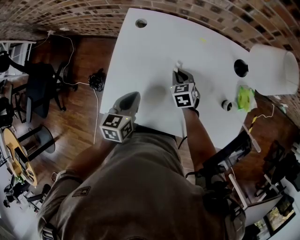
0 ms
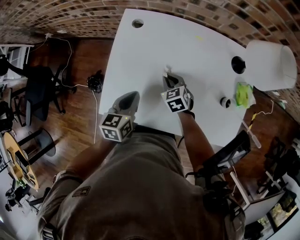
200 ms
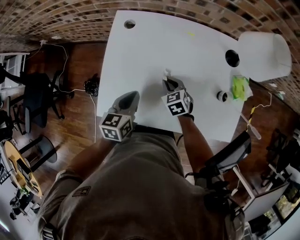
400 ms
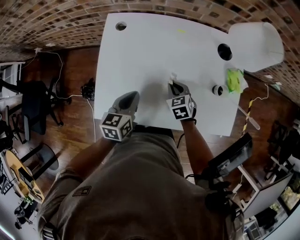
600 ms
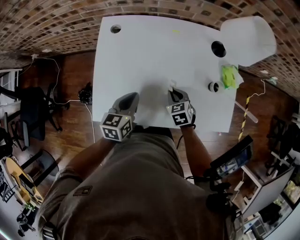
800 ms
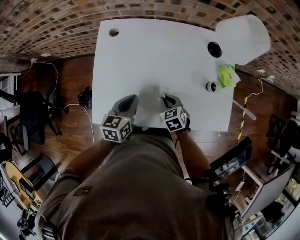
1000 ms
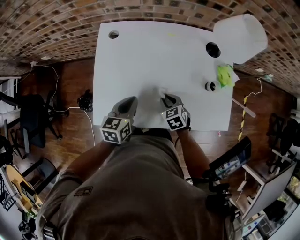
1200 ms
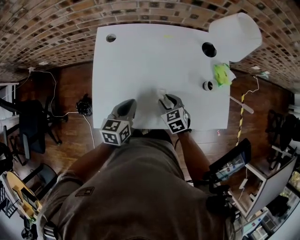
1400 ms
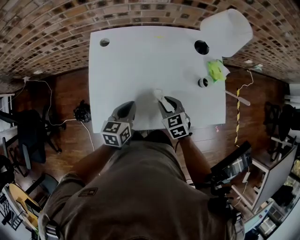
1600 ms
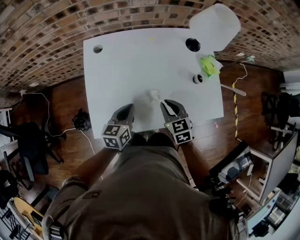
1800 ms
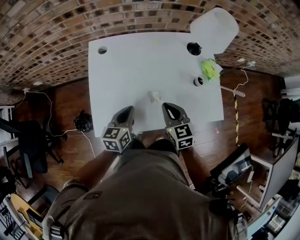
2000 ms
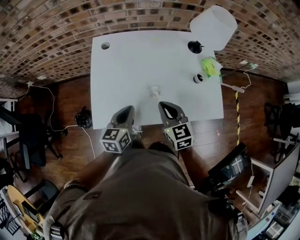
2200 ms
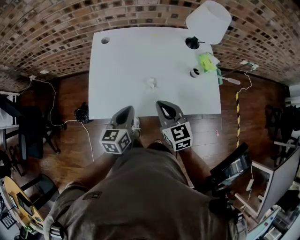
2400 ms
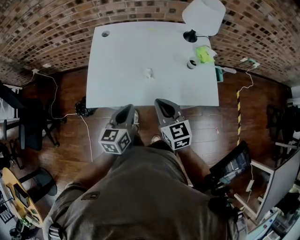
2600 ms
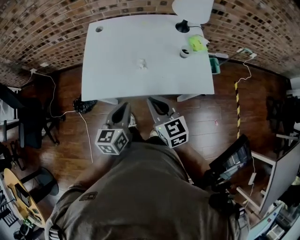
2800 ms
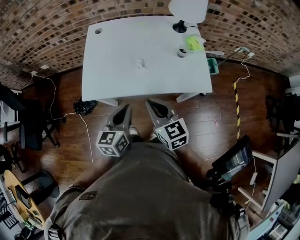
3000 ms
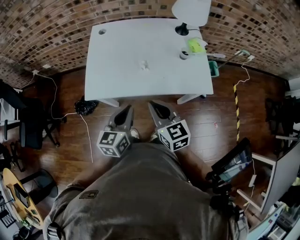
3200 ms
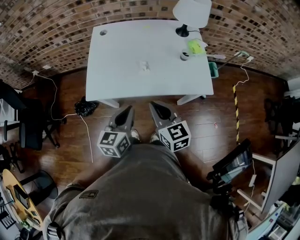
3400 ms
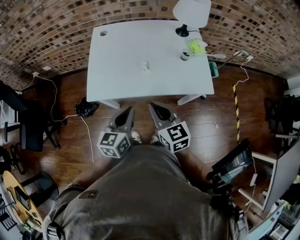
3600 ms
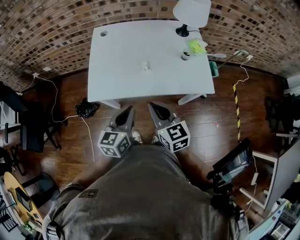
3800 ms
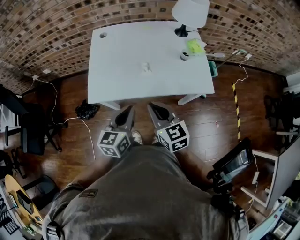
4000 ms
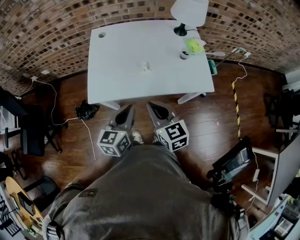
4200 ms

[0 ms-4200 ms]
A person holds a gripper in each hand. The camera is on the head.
0 ms to 1400 ms: The left gripper changes place by roughly 5 cm. The right gripper is displaced backward by some 15 cm, and opens.
1400 ms to 2800 ms: The right gripper heads backward and upward, covering roughly 25 cm, rotates approximately 30 degrees, and closes up. The left gripper is displaced backward by about 20 cm.
2800 ms to 4200 ms: The right gripper shifts by approximately 5 cm.

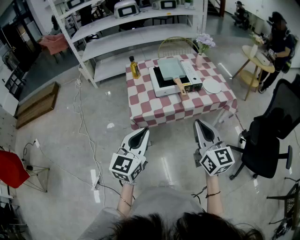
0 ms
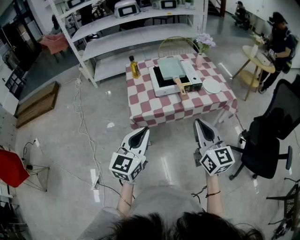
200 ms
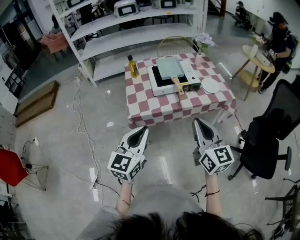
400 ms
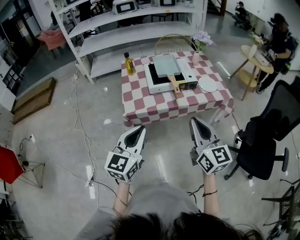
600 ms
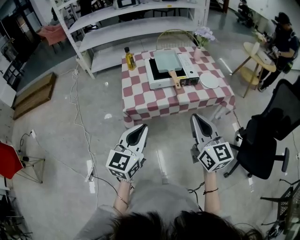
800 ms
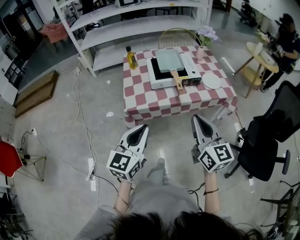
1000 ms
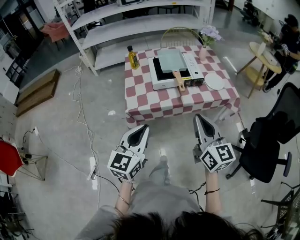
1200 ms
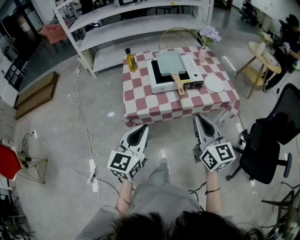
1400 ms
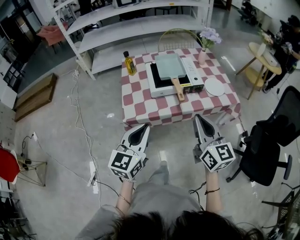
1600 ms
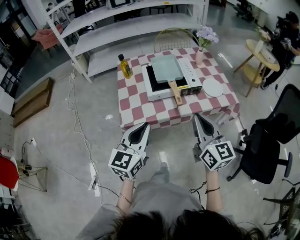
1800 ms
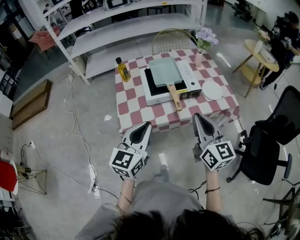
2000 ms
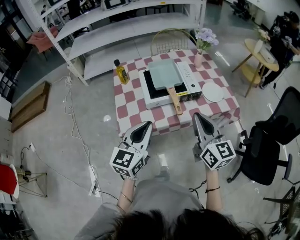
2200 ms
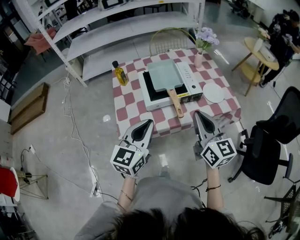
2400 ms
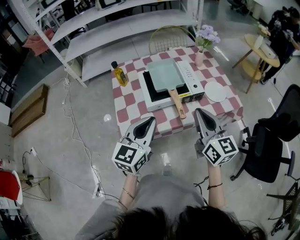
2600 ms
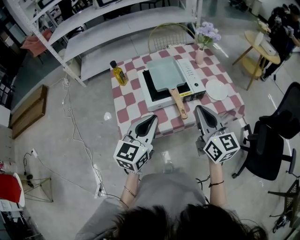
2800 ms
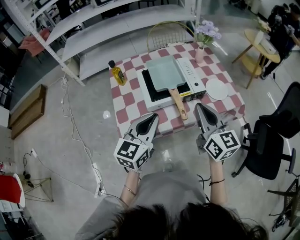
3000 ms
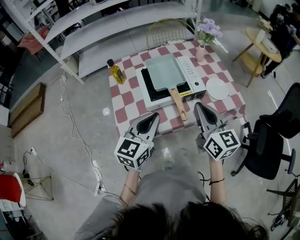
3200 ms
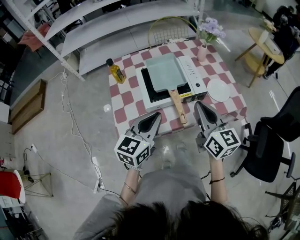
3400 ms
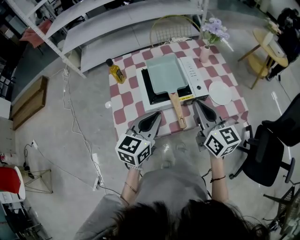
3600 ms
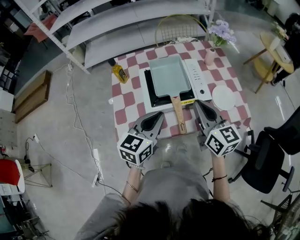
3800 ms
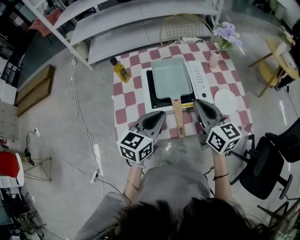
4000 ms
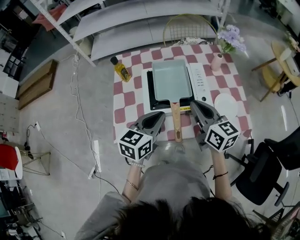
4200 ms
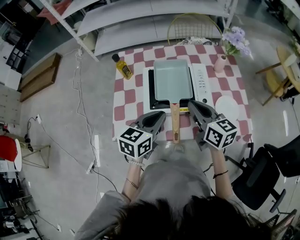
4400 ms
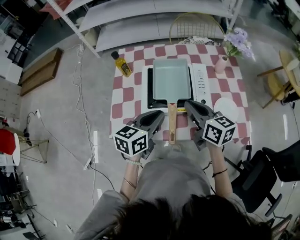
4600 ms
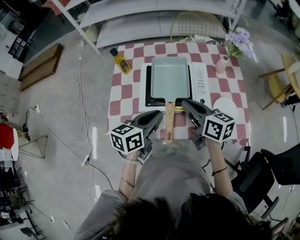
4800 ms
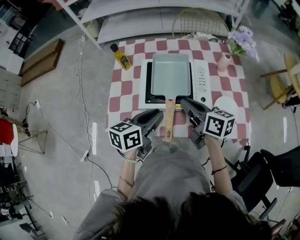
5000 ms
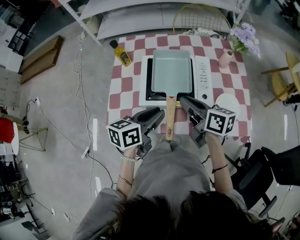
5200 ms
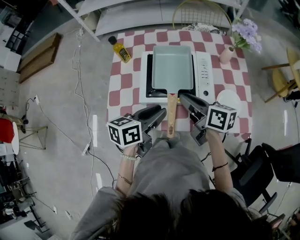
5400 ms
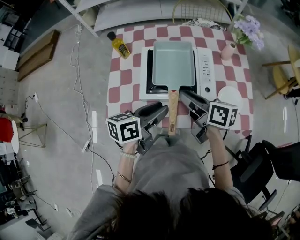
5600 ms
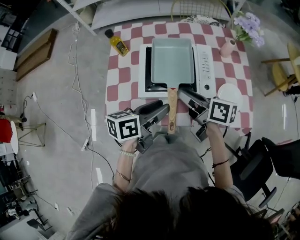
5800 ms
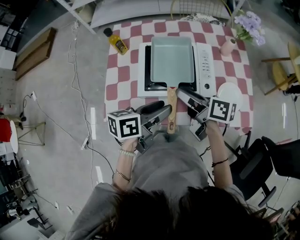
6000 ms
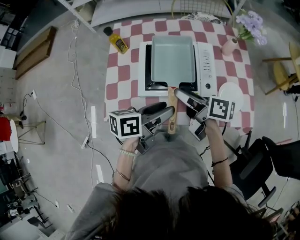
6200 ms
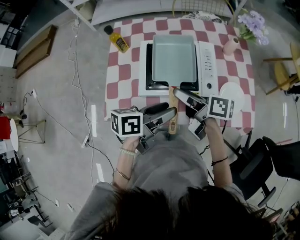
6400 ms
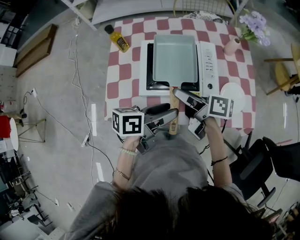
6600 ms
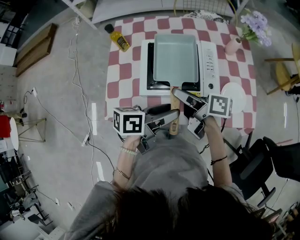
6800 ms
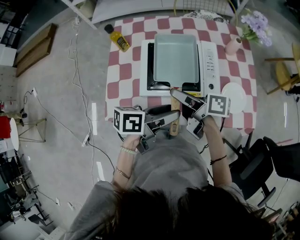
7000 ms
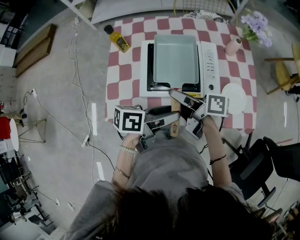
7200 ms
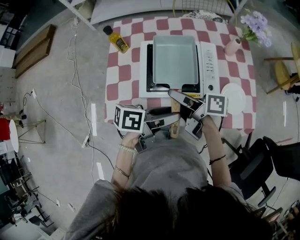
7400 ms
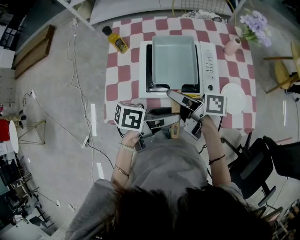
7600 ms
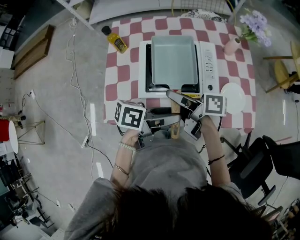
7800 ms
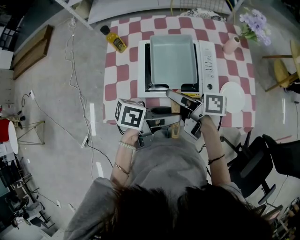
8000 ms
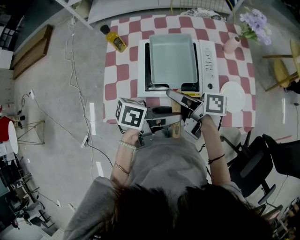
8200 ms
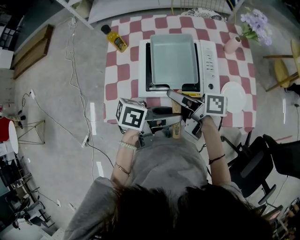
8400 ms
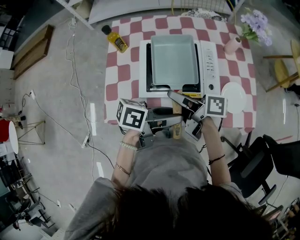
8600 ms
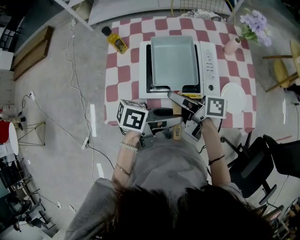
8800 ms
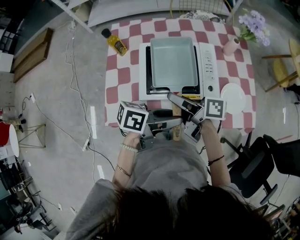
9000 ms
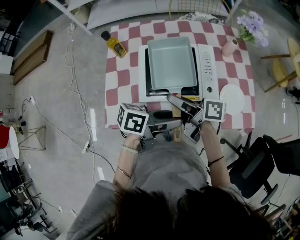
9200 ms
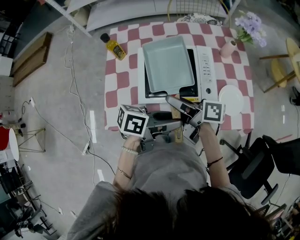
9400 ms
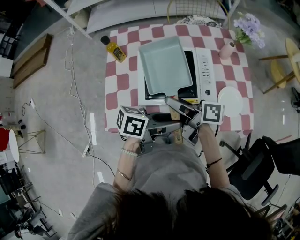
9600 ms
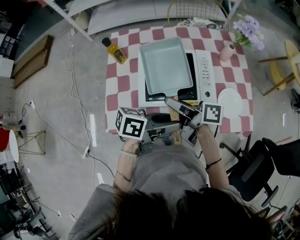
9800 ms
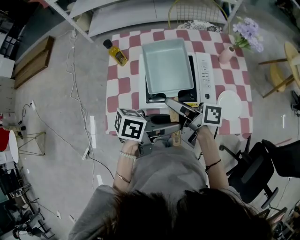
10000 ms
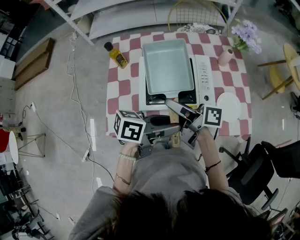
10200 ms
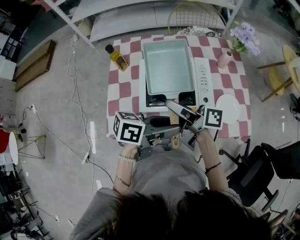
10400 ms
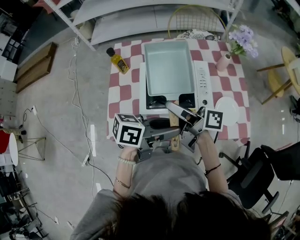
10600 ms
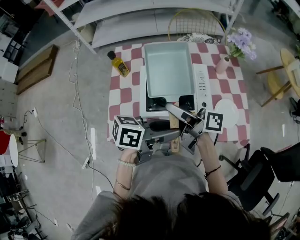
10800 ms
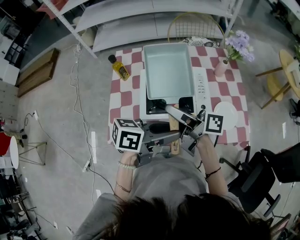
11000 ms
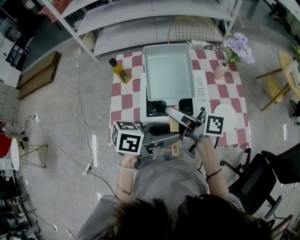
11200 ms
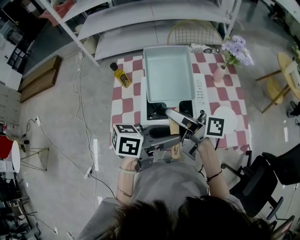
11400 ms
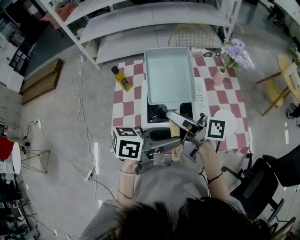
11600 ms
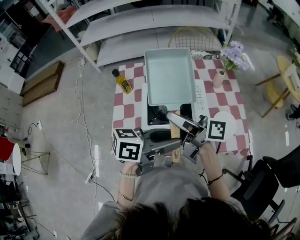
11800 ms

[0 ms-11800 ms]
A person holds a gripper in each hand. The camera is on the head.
0 ms to 1400 ms: The right gripper heads forward, covering approximately 5 cm; the left gripper ends up some 5 cm from where it was.
1400 ms to 3000 ms: Both grippers move forward, approximately 20 cm.
3000 ms to 4400 ms: Both grippers travel together forward and downward, roughly 15 cm. The right gripper swivels roughly 30 degrees. The left gripper rotates about 20 degrees.
4400 ms to 6000 ms: The left gripper turns by some 30 degrees, and opens its fingers, while the right gripper goes some 5 cm downward, changes its angle by roughly 40 degrees, and opens up.
6000 ms to 7400 ms: The grippers stay close to where they were, moving slightly.
7400 ms to 8800 ms: There are only small adjustments of the grippers.
8800 ms to 10400 ms: The right gripper heads upward, covering about 5 cm.
10400 ms to 11800 ms: The grippers both shift upward by roughly 5 cm.

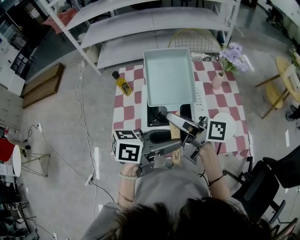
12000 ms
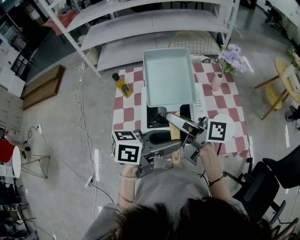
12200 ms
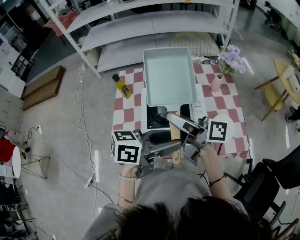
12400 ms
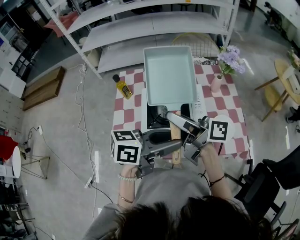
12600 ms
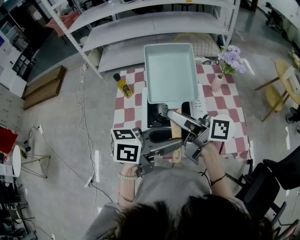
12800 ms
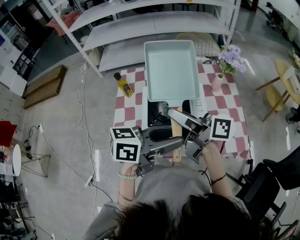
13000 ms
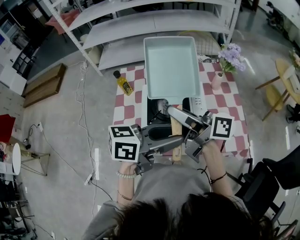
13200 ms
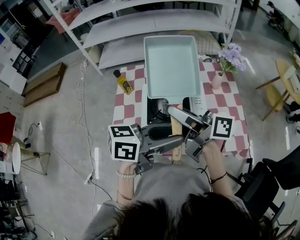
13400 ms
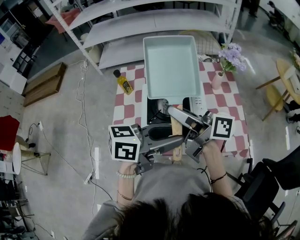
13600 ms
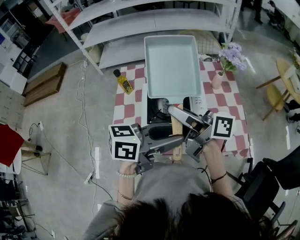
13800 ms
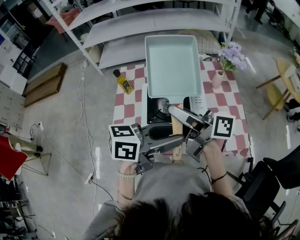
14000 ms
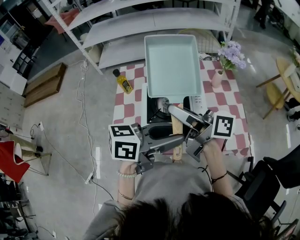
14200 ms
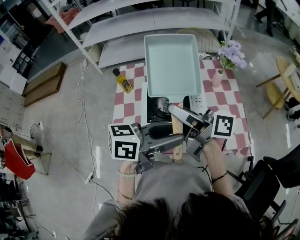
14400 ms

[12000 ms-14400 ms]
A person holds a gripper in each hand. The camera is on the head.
12000 ms to 13200 ms: The grippers move only a little.
13200 ms to 14400 ms: Both grippers stay put.

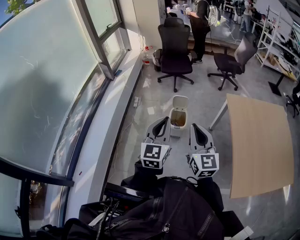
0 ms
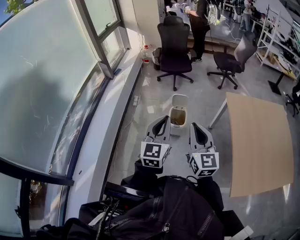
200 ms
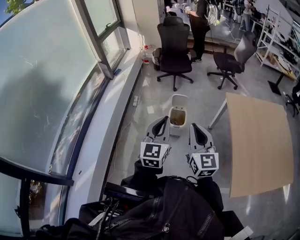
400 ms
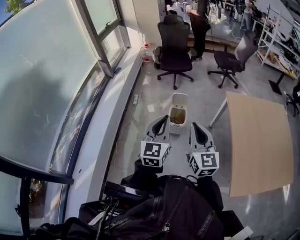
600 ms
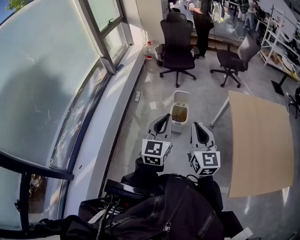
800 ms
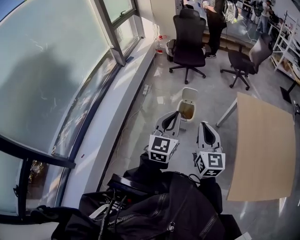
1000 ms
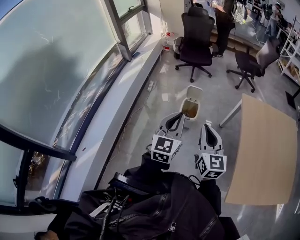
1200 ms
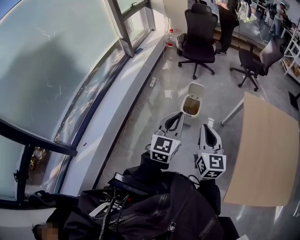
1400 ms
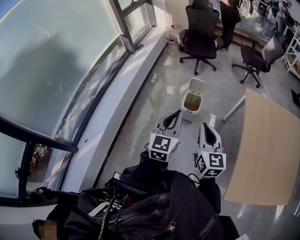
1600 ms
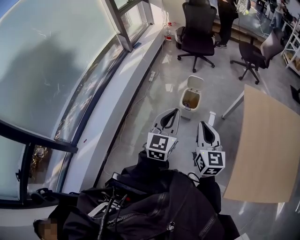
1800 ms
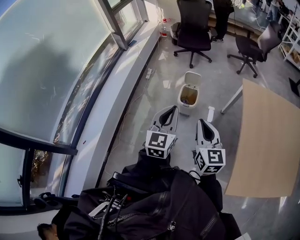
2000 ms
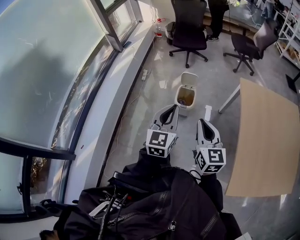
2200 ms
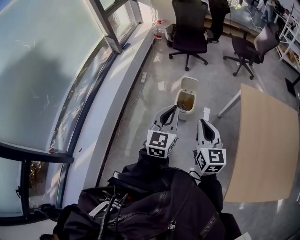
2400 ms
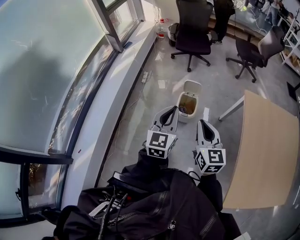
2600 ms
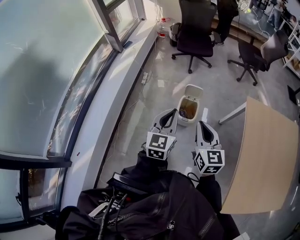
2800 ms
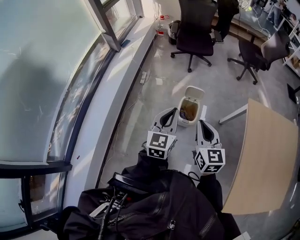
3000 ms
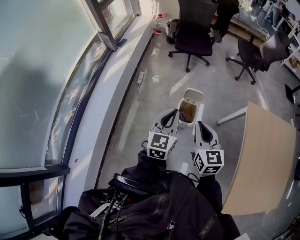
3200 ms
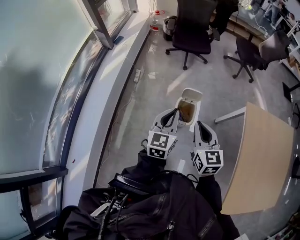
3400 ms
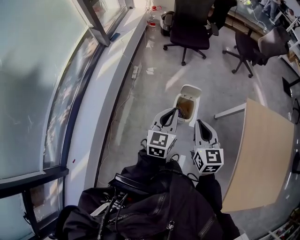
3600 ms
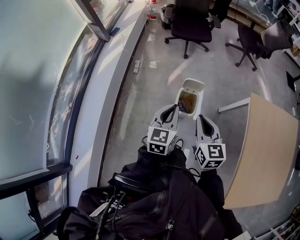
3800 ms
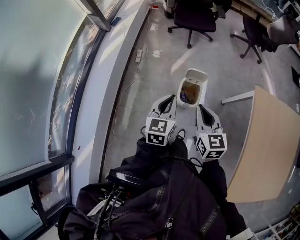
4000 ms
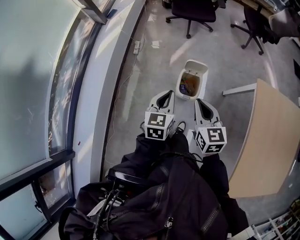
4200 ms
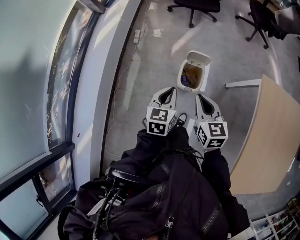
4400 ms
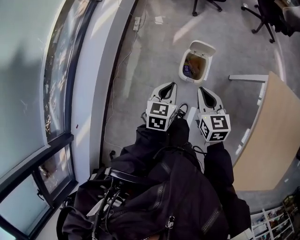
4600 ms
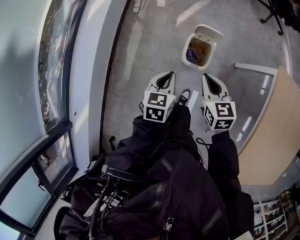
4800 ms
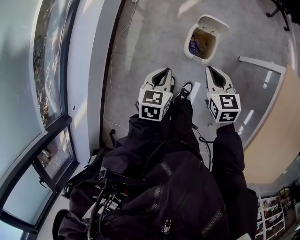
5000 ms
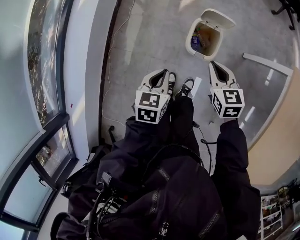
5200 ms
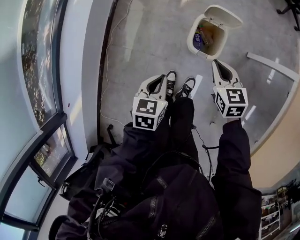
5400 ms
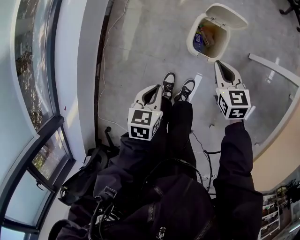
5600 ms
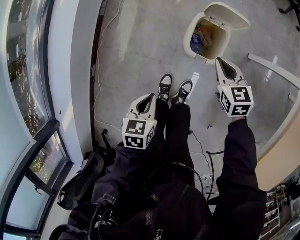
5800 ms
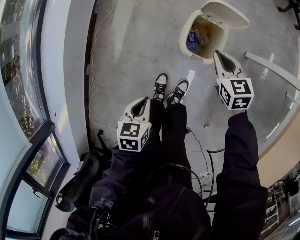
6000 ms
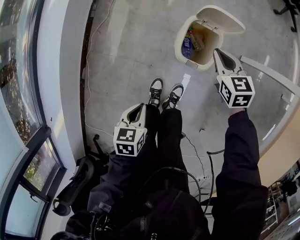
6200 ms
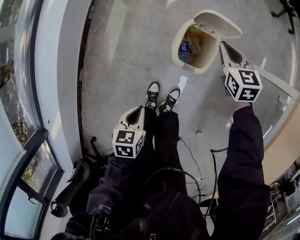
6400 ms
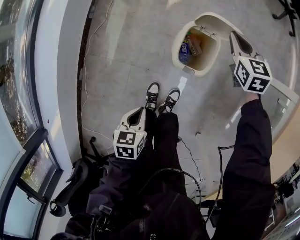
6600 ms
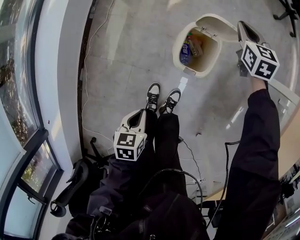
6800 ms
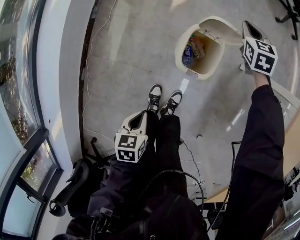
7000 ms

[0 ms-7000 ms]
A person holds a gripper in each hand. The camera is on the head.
0 ms to 1400 ms: The right gripper shifts approximately 5 cm downward. The left gripper ends up approximately 5 cm from where it was.
1400 ms to 2800 ms: The two grippers go roughly 20 cm forward.
2800 ms to 4200 ms: Both grippers travel together forward and downward, roughly 20 cm.
4200 ms to 5600 ms: Both grippers travel together downward, roughly 35 cm. The left gripper swivels about 30 degrees; the right gripper changes its angle by about 20 degrees.
5600 ms to 7000 ms: The right gripper shifts some 25 cm forward, and turns by about 20 degrees; the left gripper heads downward, covering some 10 cm.
